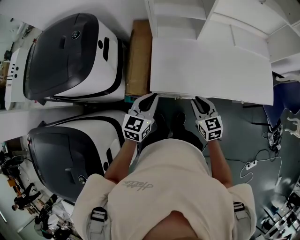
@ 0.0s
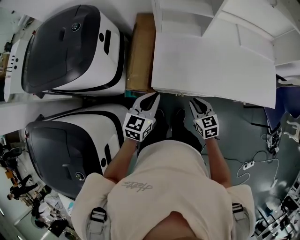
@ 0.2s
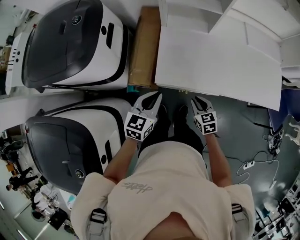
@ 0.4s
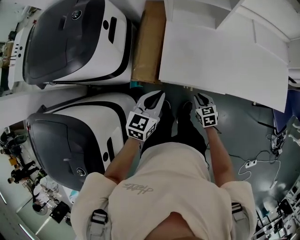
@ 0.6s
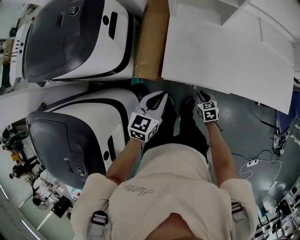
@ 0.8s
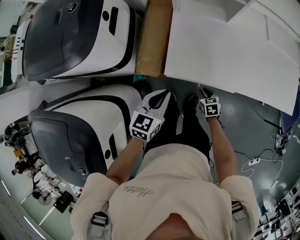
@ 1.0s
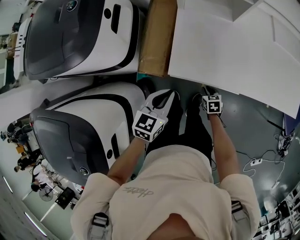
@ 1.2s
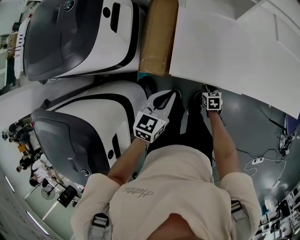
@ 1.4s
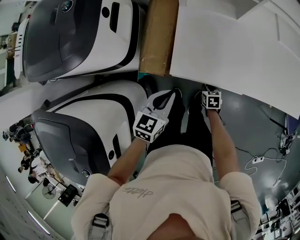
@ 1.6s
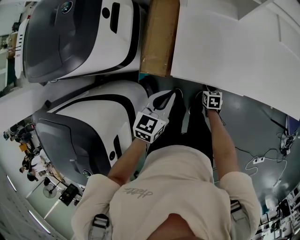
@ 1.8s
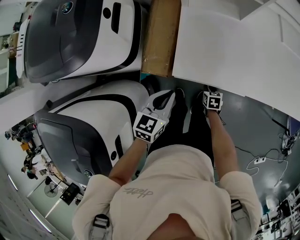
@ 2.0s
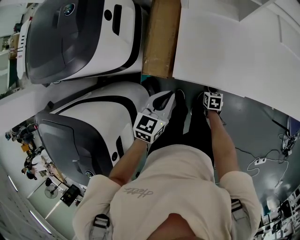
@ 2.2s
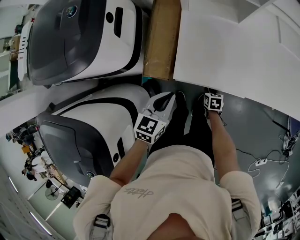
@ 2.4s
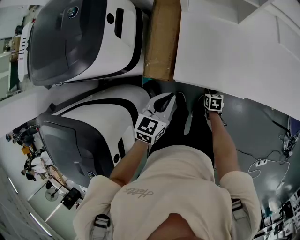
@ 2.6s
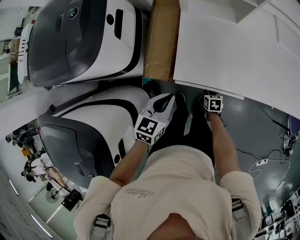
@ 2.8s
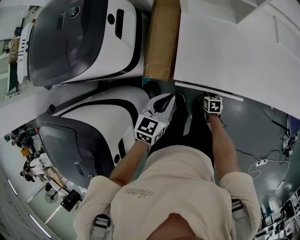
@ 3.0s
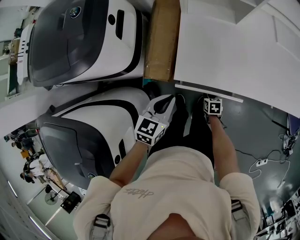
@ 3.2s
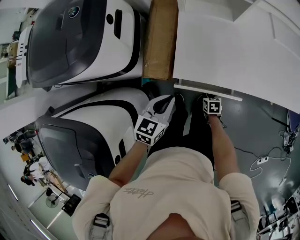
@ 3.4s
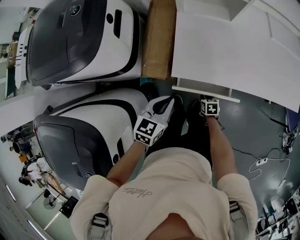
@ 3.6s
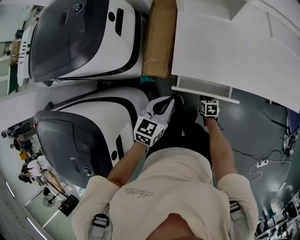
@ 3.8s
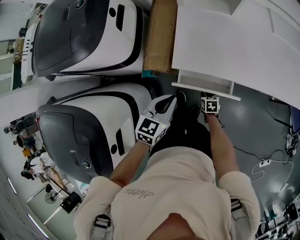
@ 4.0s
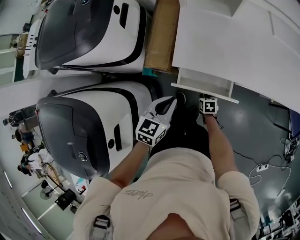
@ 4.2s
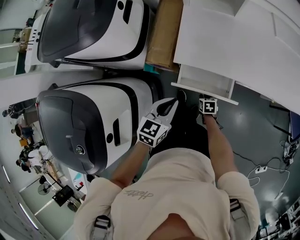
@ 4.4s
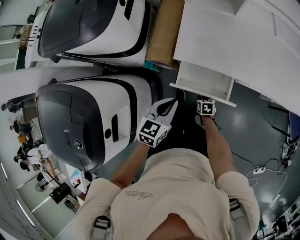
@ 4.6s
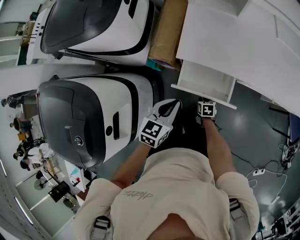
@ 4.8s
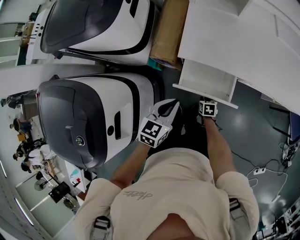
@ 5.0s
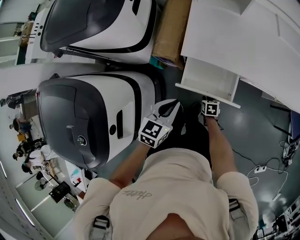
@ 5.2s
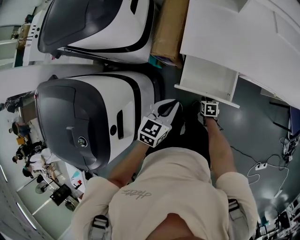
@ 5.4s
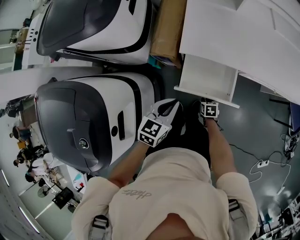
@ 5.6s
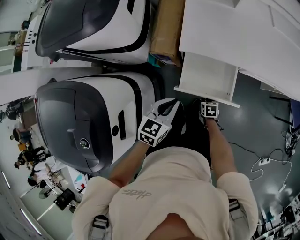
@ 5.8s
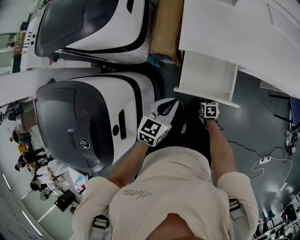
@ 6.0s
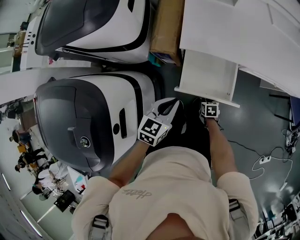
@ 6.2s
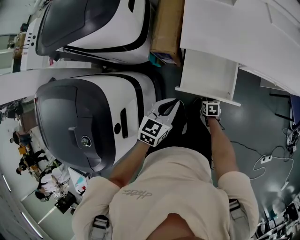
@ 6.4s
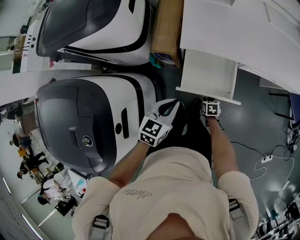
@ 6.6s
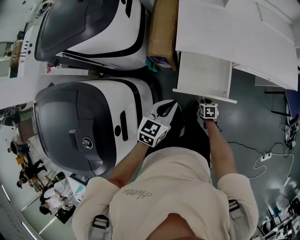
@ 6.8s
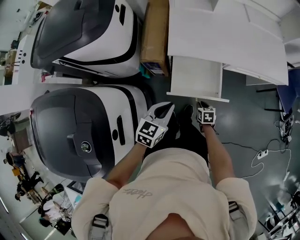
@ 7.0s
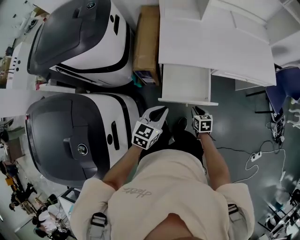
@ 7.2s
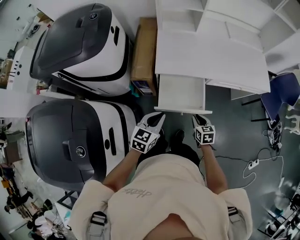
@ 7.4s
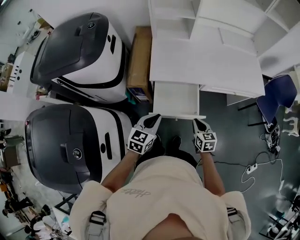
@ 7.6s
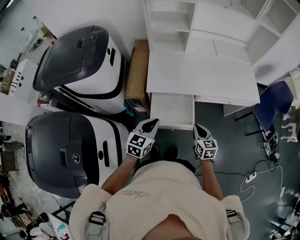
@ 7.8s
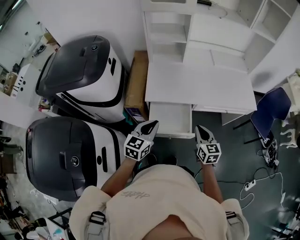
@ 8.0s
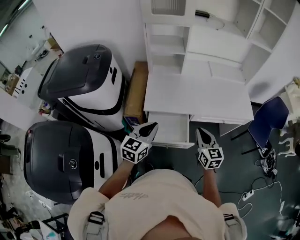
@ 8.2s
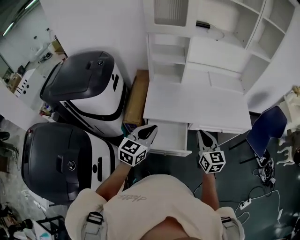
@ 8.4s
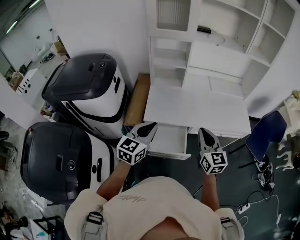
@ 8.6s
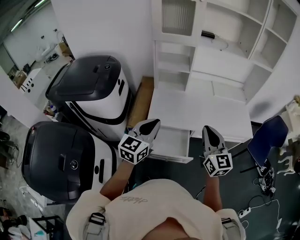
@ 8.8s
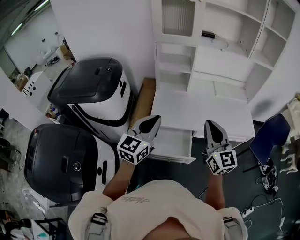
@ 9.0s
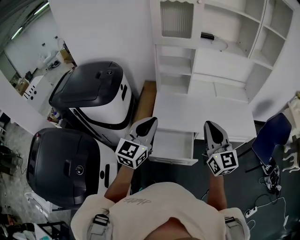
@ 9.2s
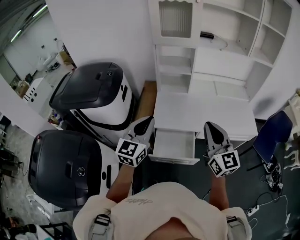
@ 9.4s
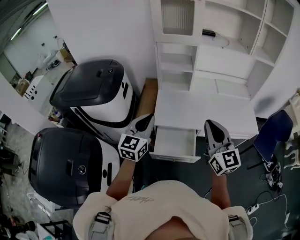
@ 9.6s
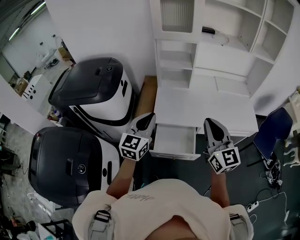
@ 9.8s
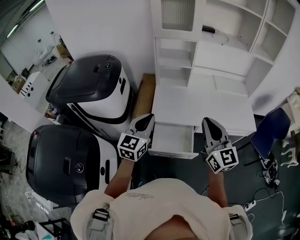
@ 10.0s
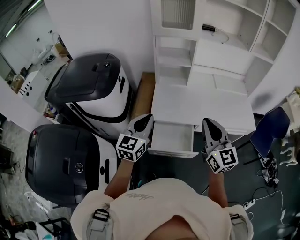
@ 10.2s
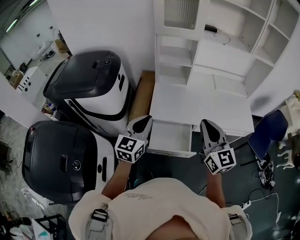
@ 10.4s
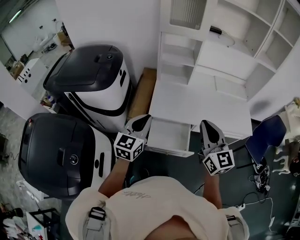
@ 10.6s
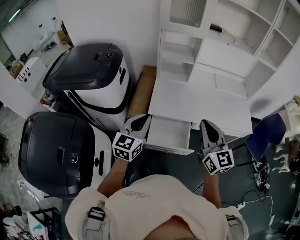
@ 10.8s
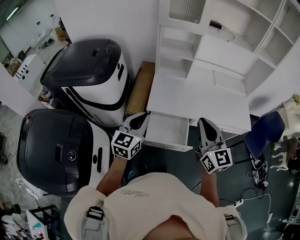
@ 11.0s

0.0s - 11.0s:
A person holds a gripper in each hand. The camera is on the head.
0.0s - 1.6s: The right gripper moves downward, about 30 cm, and tilts its fingers about 30 degrees downward. Meanwhile the left gripper shifts about 10 cm downward.
1.6s - 3.2s: The grippers make only small movements.
3.2s - 4.8s: Both grippers move backward, about 15 cm.
4.8s - 6.2s: The right gripper is displaced backward by some 5 cm; the left gripper ends up about 5 cm from where it was.
6.2s - 7.8s: The right gripper shifts approximately 30 cm upward, and tilts its fingers roughly 40 degrees upward; the left gripper heads upward and to the right, covering roughly 10 cm.
7.8s - 9.4s: The two grippers go some 30 cm upward. The right gripper tips its fingers upward by about 40 degrees. The left gripper turns by approximately 30 degrees.
9.4s - 11.0s: The left gripper moves downward, approximately 10 cm.

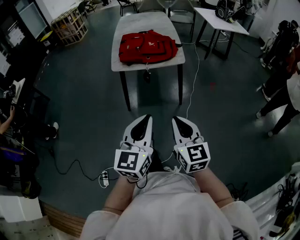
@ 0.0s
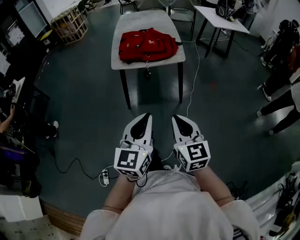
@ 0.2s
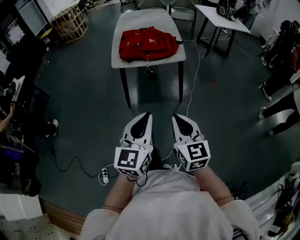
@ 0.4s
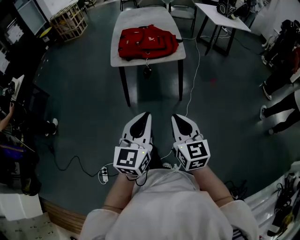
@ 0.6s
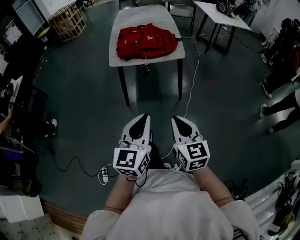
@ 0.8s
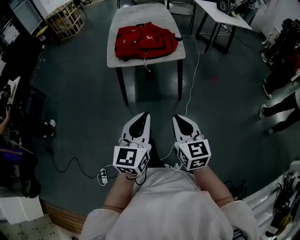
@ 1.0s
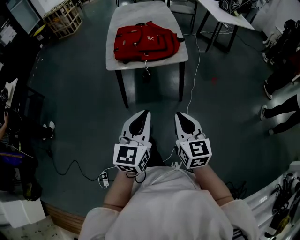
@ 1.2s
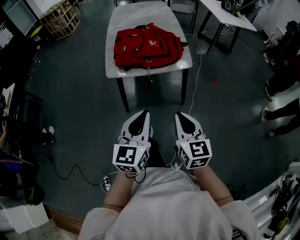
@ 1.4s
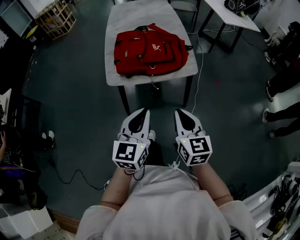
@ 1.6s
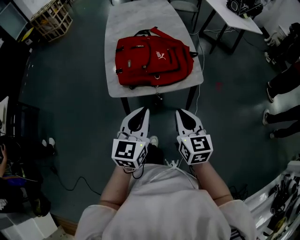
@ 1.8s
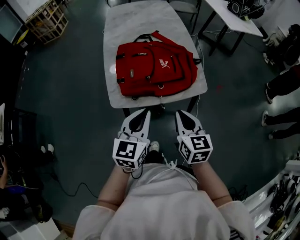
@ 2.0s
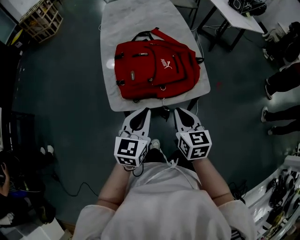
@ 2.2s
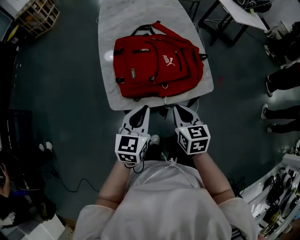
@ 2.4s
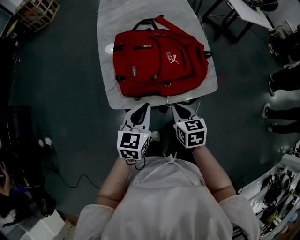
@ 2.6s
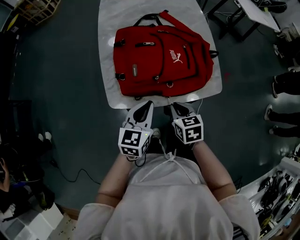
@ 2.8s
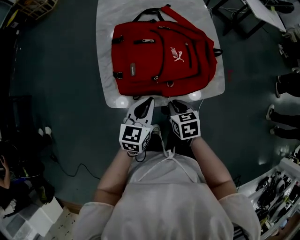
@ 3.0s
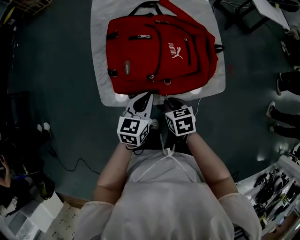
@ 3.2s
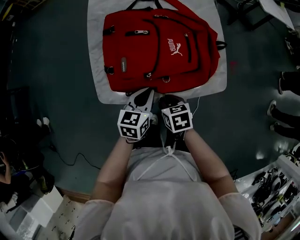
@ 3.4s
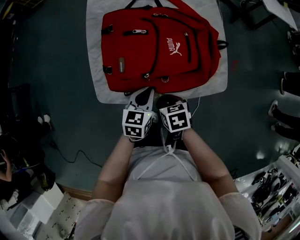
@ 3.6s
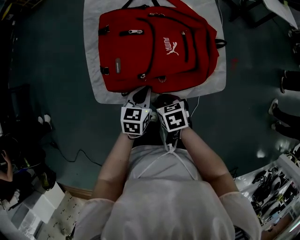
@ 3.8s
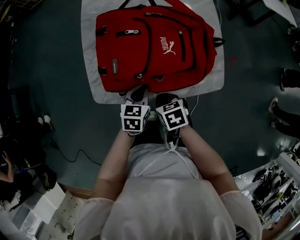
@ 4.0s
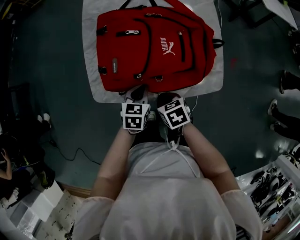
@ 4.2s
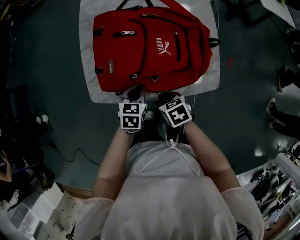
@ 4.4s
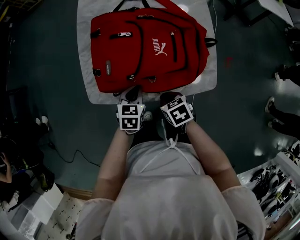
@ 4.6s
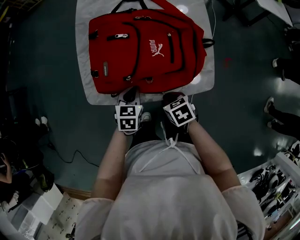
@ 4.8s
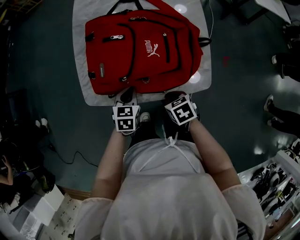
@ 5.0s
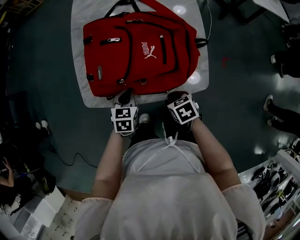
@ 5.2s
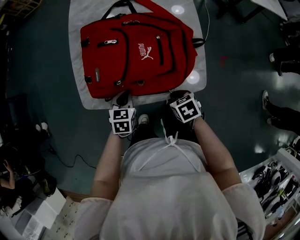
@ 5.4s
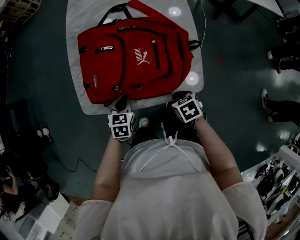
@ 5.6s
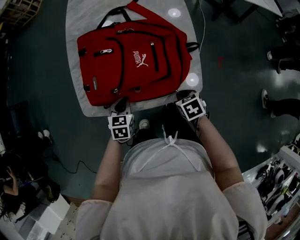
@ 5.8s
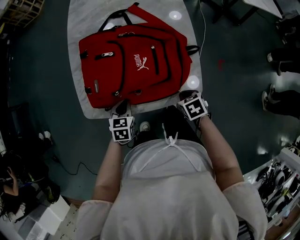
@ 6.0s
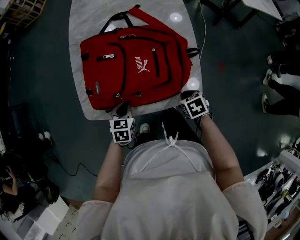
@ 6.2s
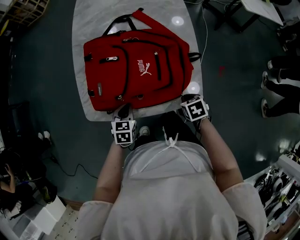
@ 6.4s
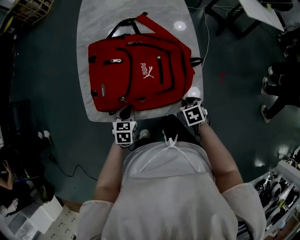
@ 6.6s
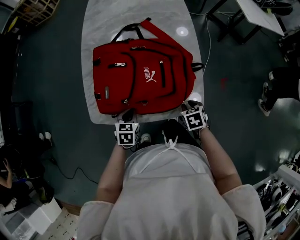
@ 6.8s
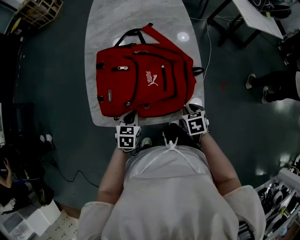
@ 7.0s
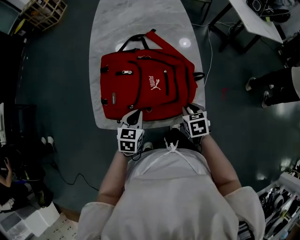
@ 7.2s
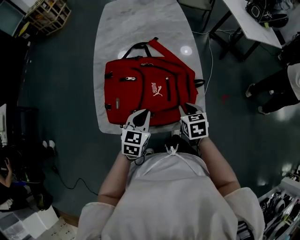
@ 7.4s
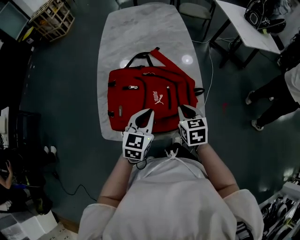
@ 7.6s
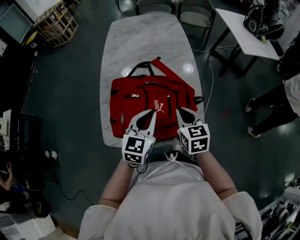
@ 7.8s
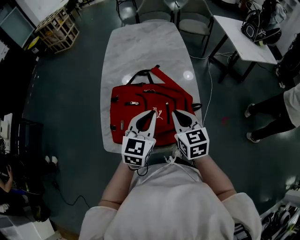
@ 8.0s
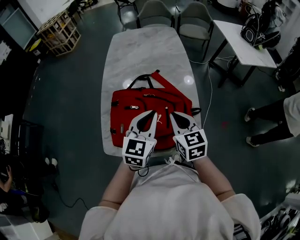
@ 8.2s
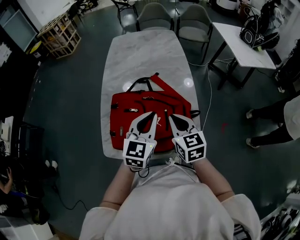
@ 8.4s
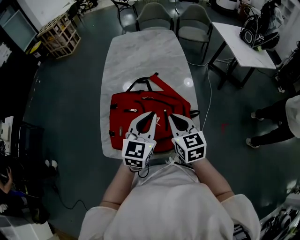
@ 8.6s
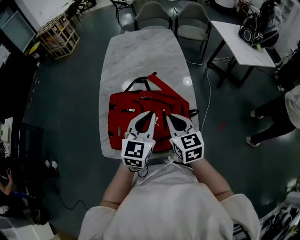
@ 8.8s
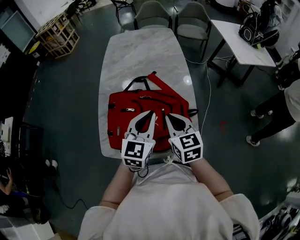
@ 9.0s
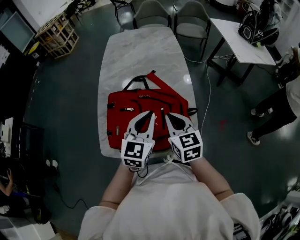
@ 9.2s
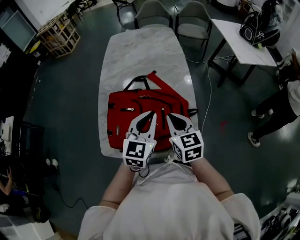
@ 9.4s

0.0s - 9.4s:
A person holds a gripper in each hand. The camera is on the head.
0.0s - 1.6s: The grippers both shift forward by about 30 cm.
1.6s - 3.2s: The left gripper goes approximately 35 cm forward and downward, and rotates approximately 20 degrees; the right gripper heads forward, downward and to the left, covering roughly 40 cm, and tips its fingers downward by roughly 40 degrees.
3.2s - 4.8s: The right gripper shifts approximately 5 cm to the right; the left gripper goes some 10 cm downward, and swivels roughly 20 degrees.
4.8s - 6.2s: The right gripper shifts about 15 cm to the right.
6.2s - 7.8s: Both grippers move upward, approximately 25 cm. The left gripper tilts its fingers roughly 30 degrees upward; the right gripper tips its fingers upward by about 40 degrees.
7.8s - 9.4s: The left gripper changes place by about 5 cm.

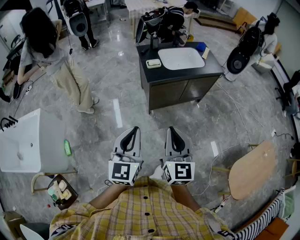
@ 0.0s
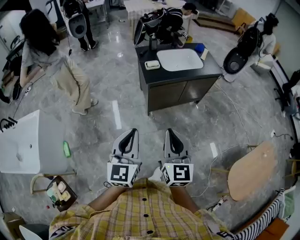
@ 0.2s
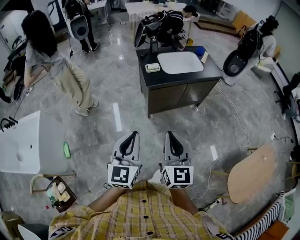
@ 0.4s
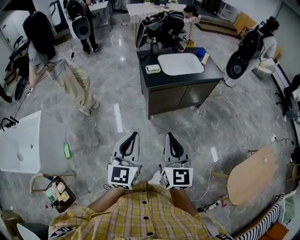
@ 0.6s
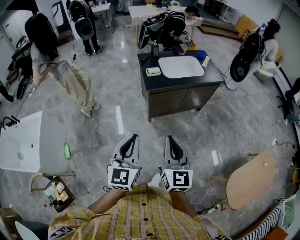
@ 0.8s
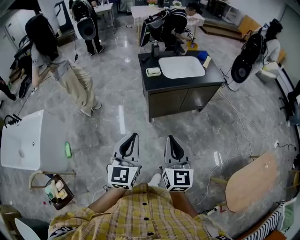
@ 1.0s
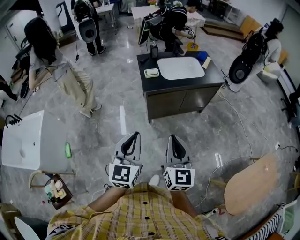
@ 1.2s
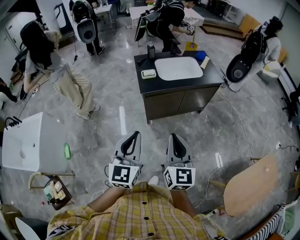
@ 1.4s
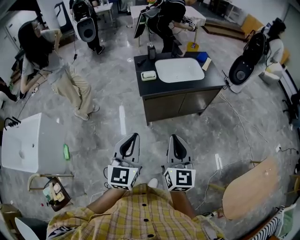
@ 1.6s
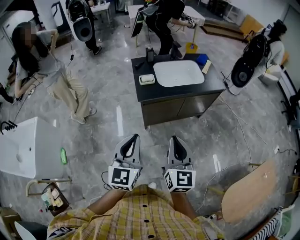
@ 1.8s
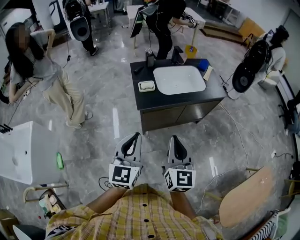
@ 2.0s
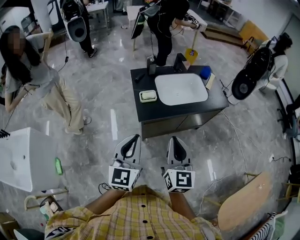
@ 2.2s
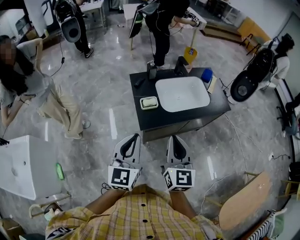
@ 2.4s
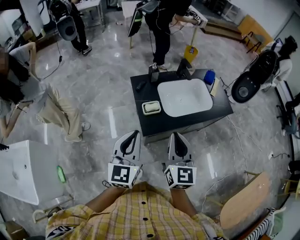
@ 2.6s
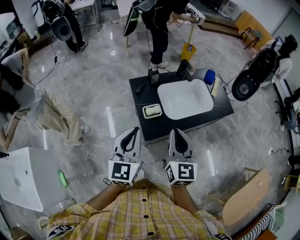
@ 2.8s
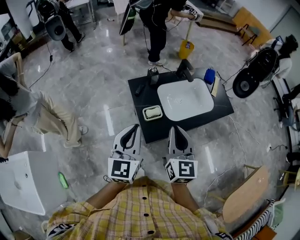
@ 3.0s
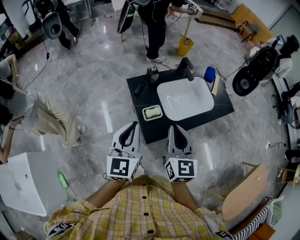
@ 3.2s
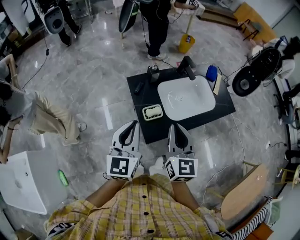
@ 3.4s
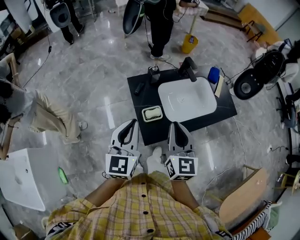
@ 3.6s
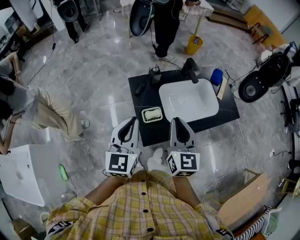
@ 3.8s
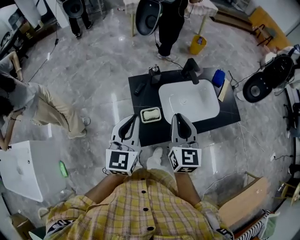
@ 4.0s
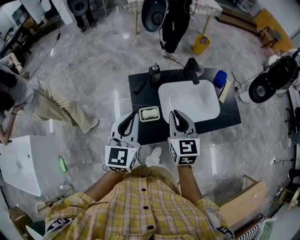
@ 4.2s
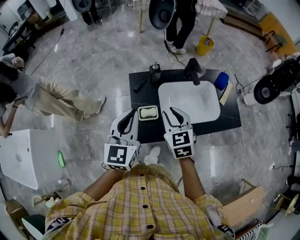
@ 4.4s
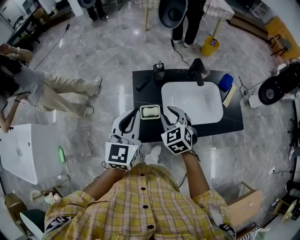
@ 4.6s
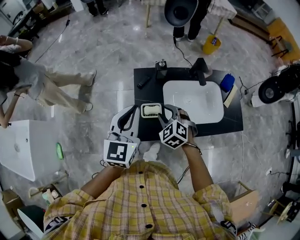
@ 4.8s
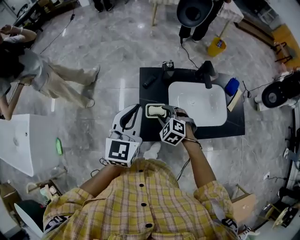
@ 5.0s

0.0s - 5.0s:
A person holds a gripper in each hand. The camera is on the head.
0.0s - 1.6s: The grippers both shift to the right and forward by roughly 15 cm.
1.6s - 3.4s: The pair of grippers is taken forward, about 50 cm.
3.4s - 5.0s: The right gripper shifts some 25 cm downward, tips its fingers downward by roughly 40 degrees, and opens its fingers; the left gripper moves some 10 cm.
